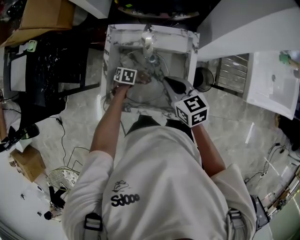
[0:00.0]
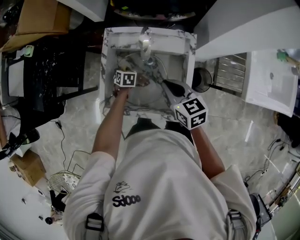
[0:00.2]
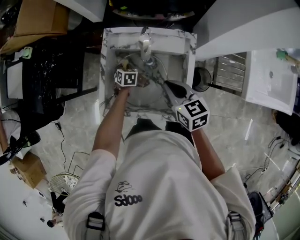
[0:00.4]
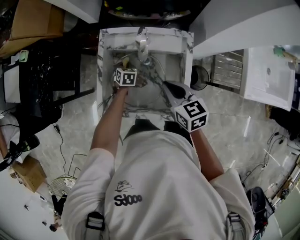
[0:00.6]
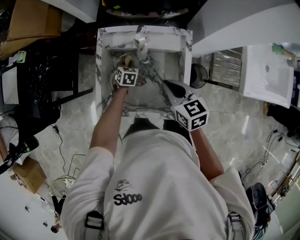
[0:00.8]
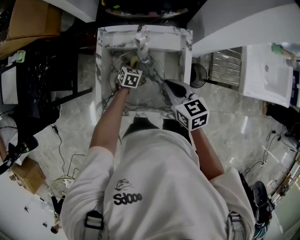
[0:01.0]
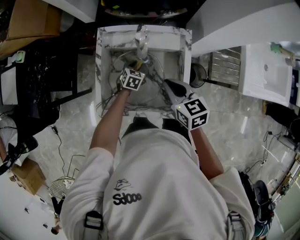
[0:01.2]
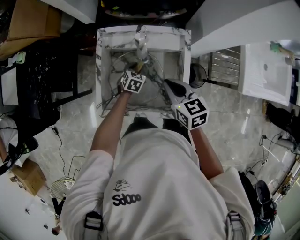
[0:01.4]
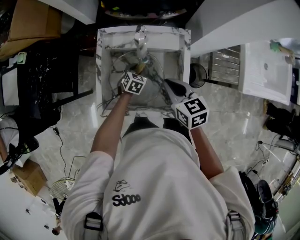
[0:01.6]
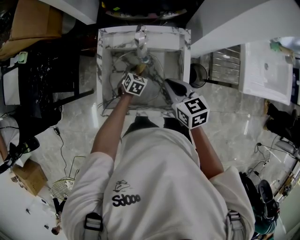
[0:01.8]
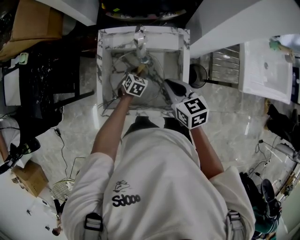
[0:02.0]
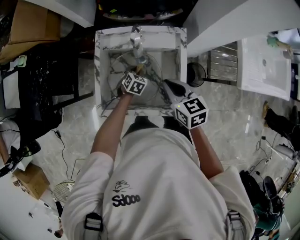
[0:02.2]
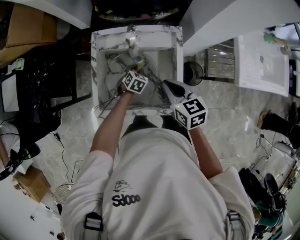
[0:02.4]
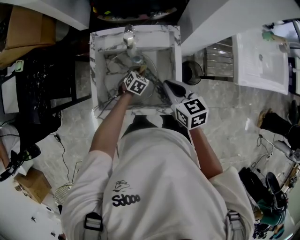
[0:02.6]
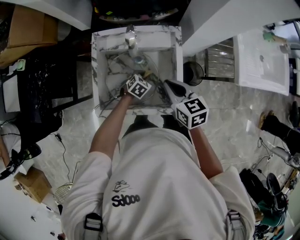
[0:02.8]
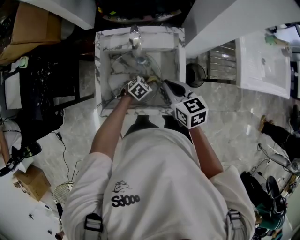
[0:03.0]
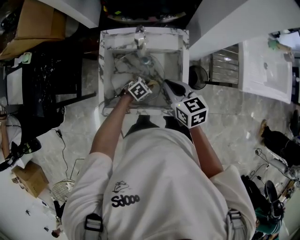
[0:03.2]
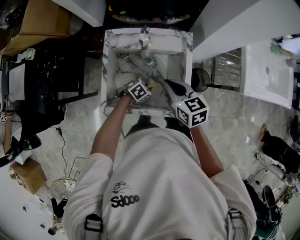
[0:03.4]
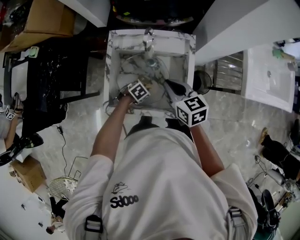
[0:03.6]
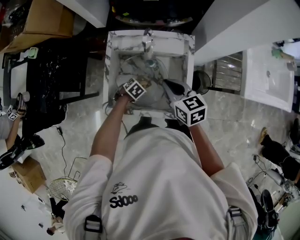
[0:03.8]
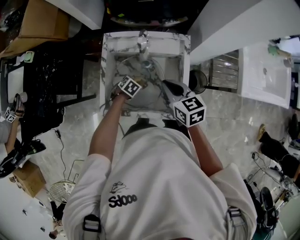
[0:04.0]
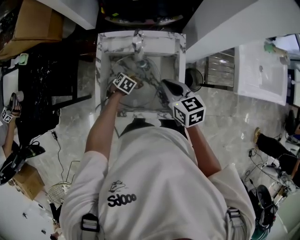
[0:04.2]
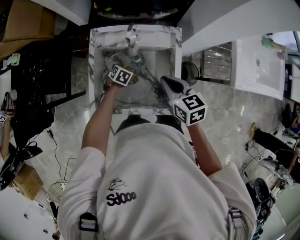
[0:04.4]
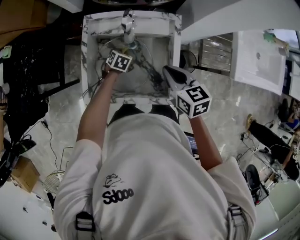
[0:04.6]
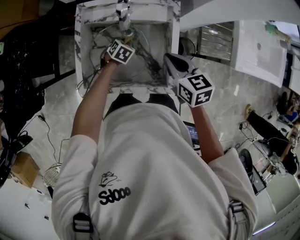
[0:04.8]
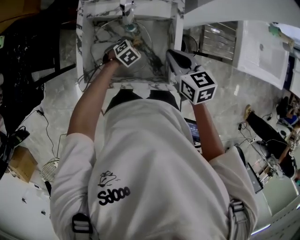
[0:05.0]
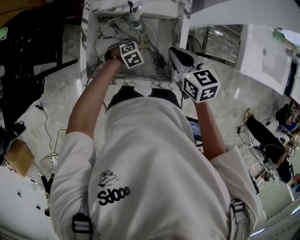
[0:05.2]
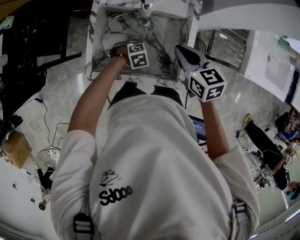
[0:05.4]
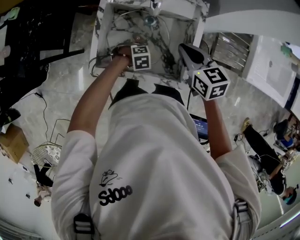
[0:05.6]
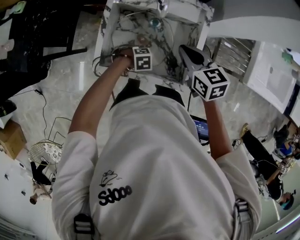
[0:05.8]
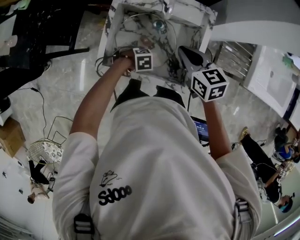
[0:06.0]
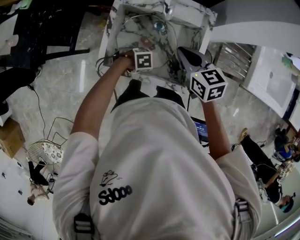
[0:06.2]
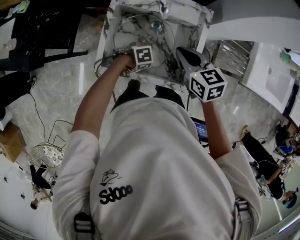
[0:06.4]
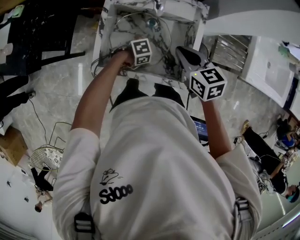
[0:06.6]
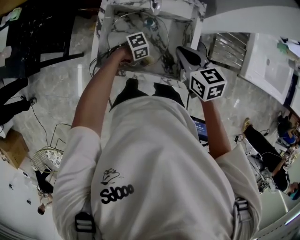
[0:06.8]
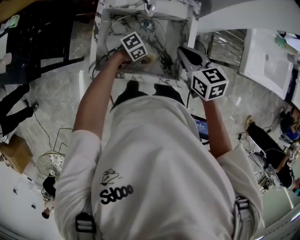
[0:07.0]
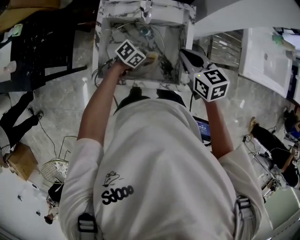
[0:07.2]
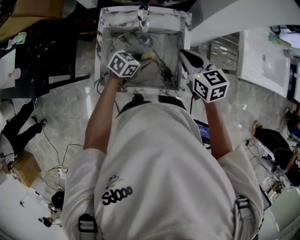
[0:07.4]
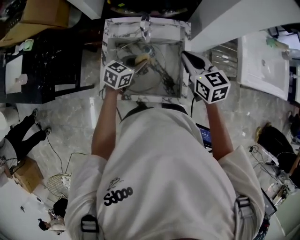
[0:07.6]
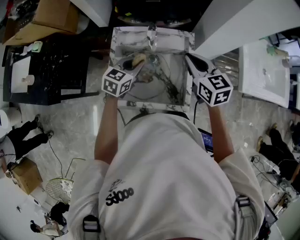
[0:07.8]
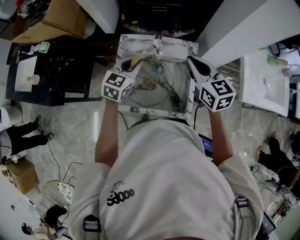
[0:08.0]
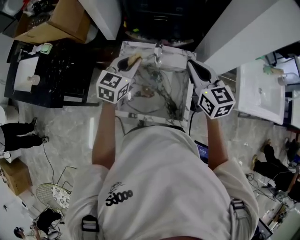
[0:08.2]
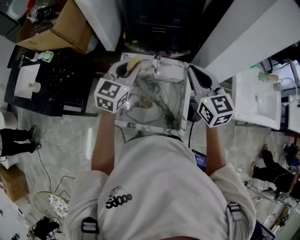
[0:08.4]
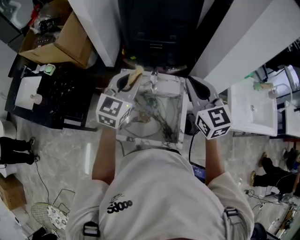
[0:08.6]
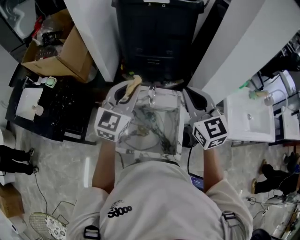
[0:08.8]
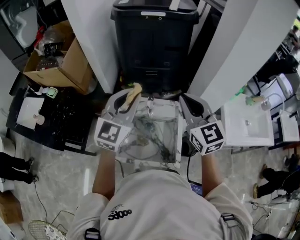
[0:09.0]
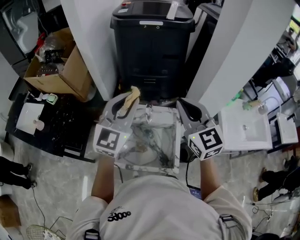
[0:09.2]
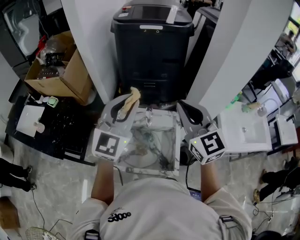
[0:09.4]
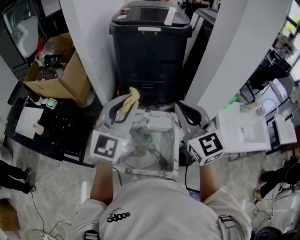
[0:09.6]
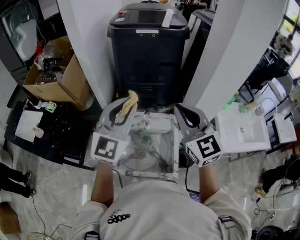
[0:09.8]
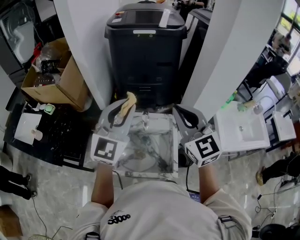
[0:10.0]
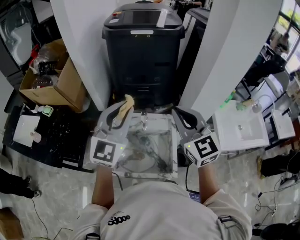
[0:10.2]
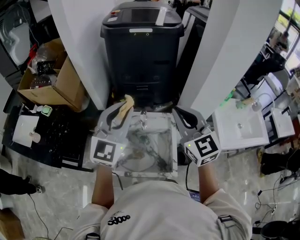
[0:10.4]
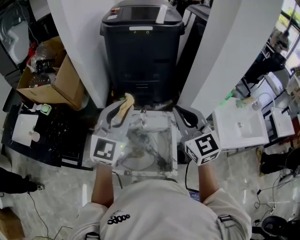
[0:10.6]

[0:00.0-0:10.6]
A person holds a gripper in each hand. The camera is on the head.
0:00.0 to 0:01.6: The left gripper shifts by roughly 10 cm, rotates approximately 30 degrees, and opens.
0:01.6 to 0:03.0: The left gripper shifts some 10 cm backward and to the right, rotates approximately 30 degrees, and closes.
0:03.0 to 0:04.6: The left gripper ends up some 15 cm from where it was, and swivels roughly 30 degrees.
0:04.6 to 0:06.0: The right gripper changes place by about 5 cm. Meanwhile the left gripper shifts by roughly 20 cm, and swivels approximately 50 degrees.
0:06.0 to 0:07.6: The right gripper heads upward, covering about 5 cm, while the left gripper goes about 20 cm upward, and tilts its fingers about 40 degrees upward.
0:07.6 to 0:09.0: The grippers both shift upward by some 30 cm. The left gripper angles its fingers upward, by roughly 30 degrees, while the right gripper rotates some 30 degrees.

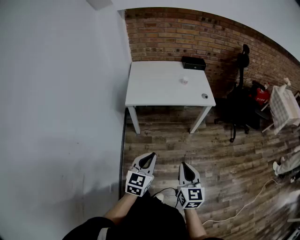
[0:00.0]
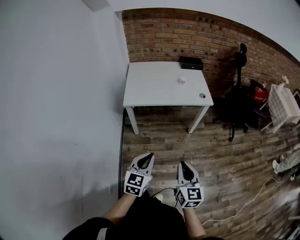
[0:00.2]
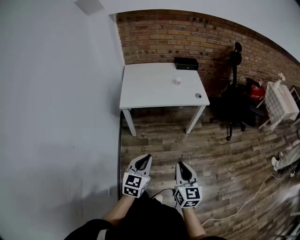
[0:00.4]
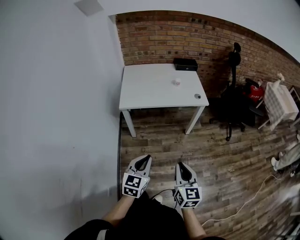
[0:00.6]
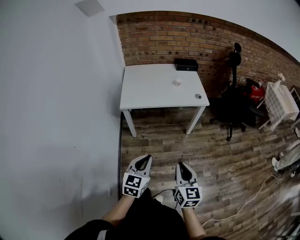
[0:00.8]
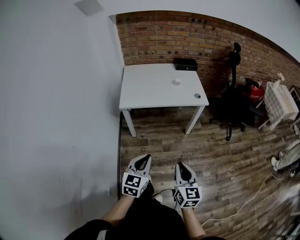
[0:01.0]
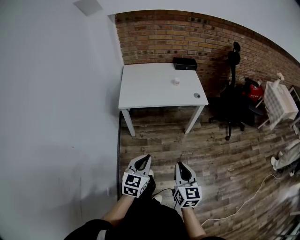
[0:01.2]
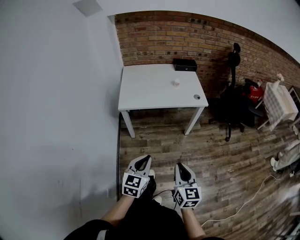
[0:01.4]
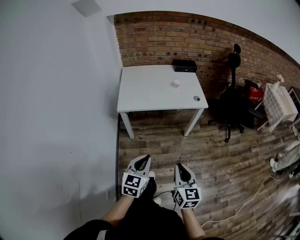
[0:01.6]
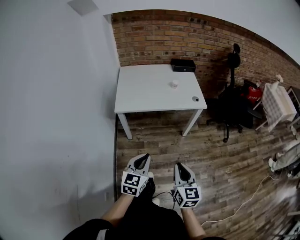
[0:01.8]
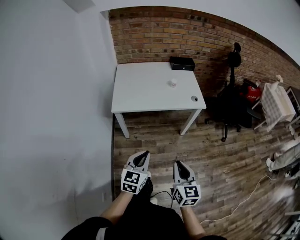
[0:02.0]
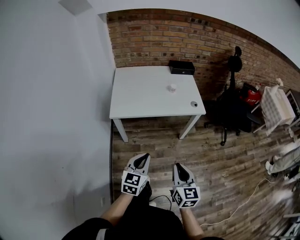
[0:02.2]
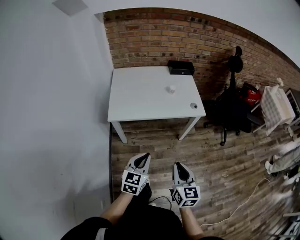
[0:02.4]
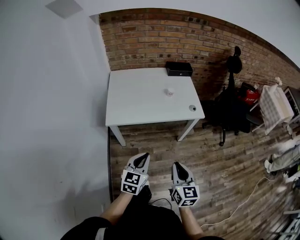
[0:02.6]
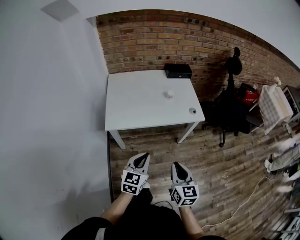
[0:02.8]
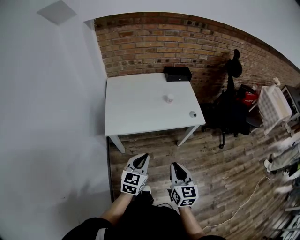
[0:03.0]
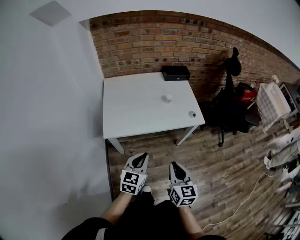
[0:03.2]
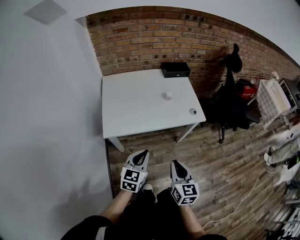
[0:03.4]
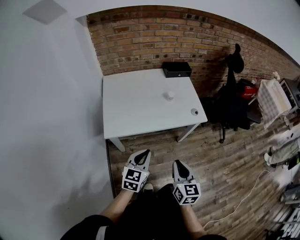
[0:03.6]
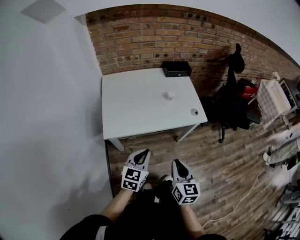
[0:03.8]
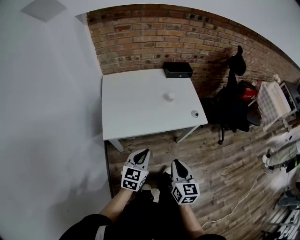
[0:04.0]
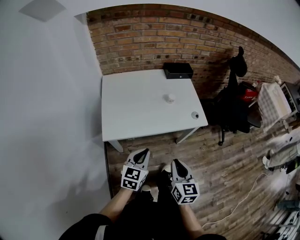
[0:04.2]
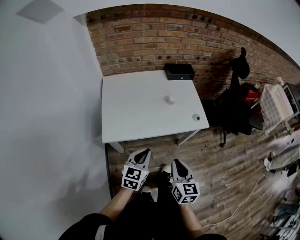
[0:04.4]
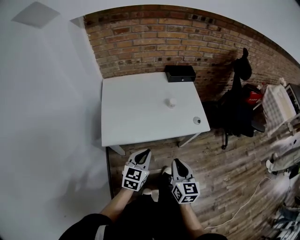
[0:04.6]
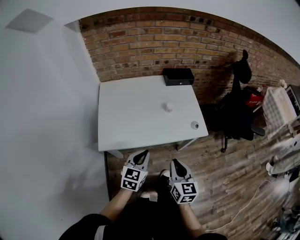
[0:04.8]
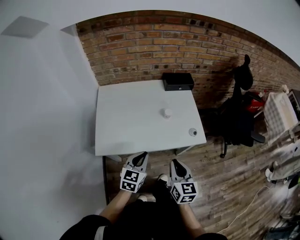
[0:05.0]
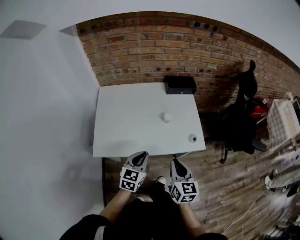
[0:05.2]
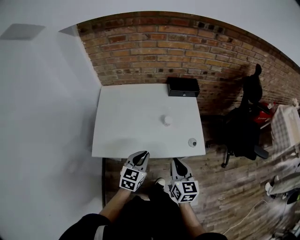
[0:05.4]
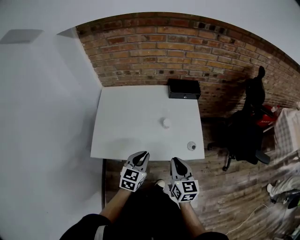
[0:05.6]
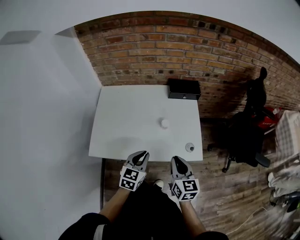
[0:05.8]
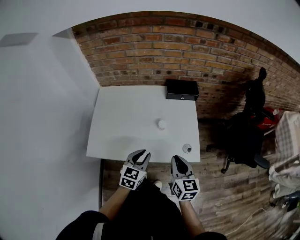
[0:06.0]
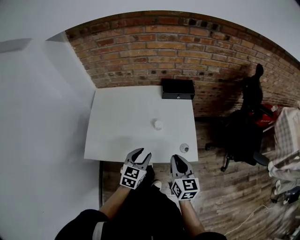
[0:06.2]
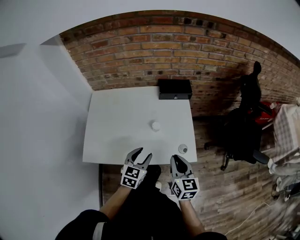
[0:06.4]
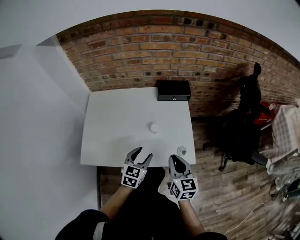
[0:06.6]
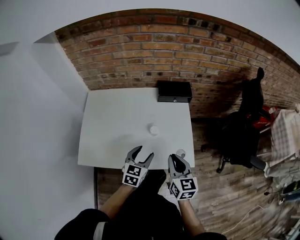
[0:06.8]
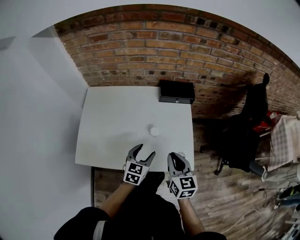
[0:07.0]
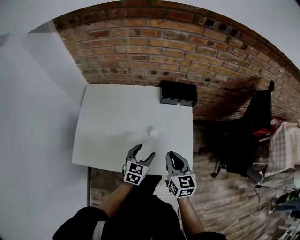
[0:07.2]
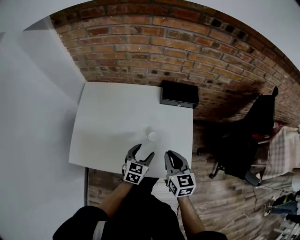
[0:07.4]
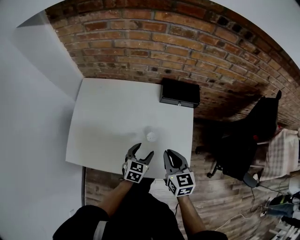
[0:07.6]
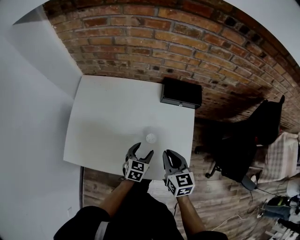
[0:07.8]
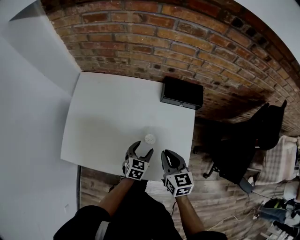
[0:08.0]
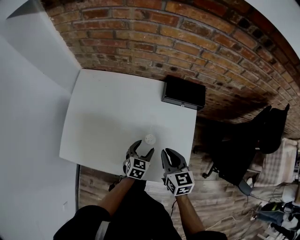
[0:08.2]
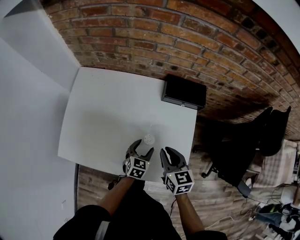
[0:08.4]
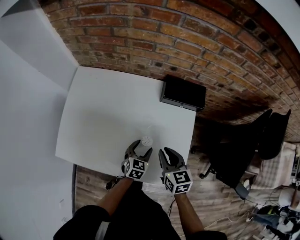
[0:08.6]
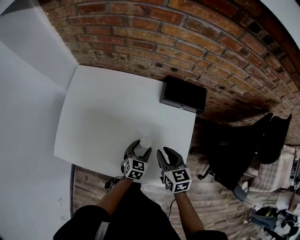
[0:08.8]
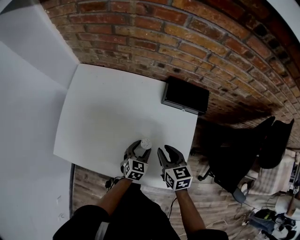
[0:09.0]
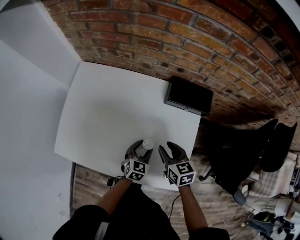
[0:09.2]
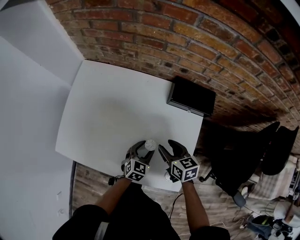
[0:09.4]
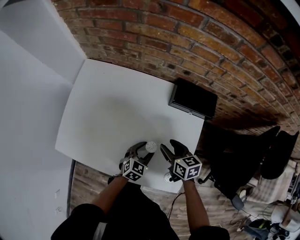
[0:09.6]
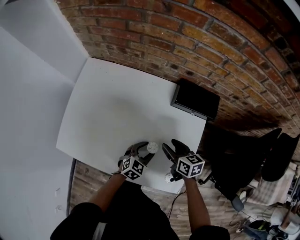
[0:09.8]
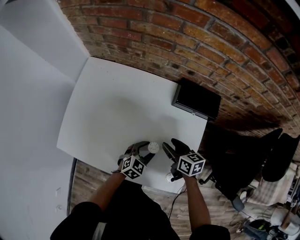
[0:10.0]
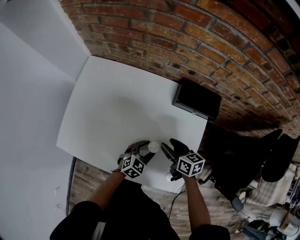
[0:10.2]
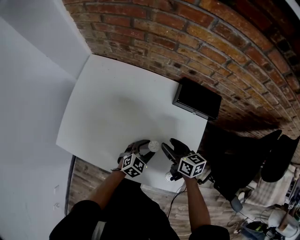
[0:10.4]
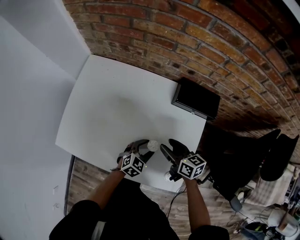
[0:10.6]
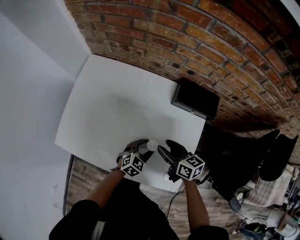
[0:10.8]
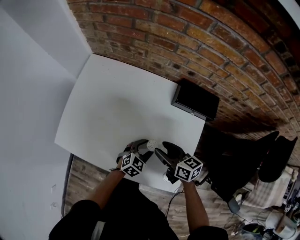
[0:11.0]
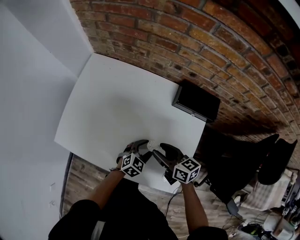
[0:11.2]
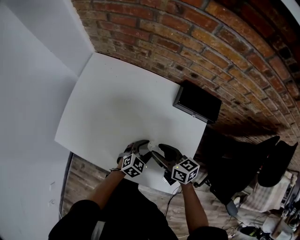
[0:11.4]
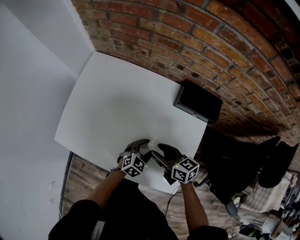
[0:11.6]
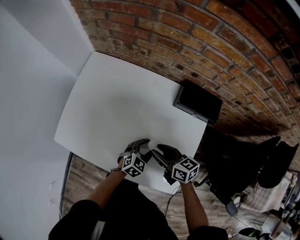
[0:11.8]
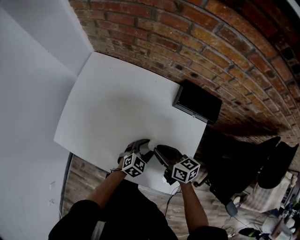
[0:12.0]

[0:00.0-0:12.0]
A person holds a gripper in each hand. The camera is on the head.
0:00.0 to 0:01.6: The grippers make only small movements.
0:01.6 to 0:03.0: Both grippers travel together forward, approximately 25 cm.
0:03.0 to 0:04.4: Both grippers travel together forward, roughly 10 cm.
0:04.4 to 0:06.0: Both grippers move forward and to the right, about 25 cm.
0:06.0 to 0:07.6: The left gripper moves forward and downward, approximately 20 cm, and opens up. The right gripper heads forward, covering approximately 15 cm.
0:07.6 to 0:09.0: Both grippers move downward and forward, roughly 10 cm.
0:09.0 to 0:10.4: The right gripper changes place by about 5 cm, changes its angle by some 20 degrees, and opens up.
0:10.4 to 0:12.0: The right gripper closes.

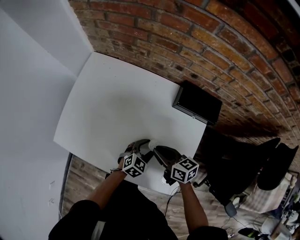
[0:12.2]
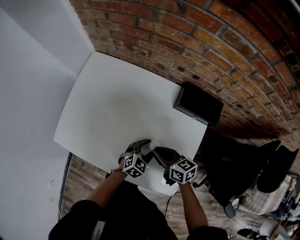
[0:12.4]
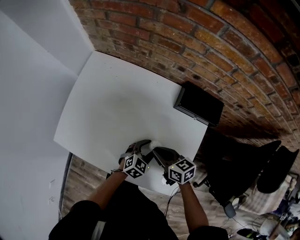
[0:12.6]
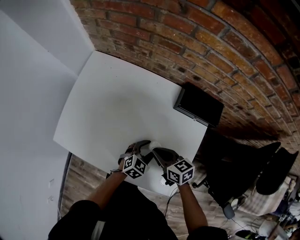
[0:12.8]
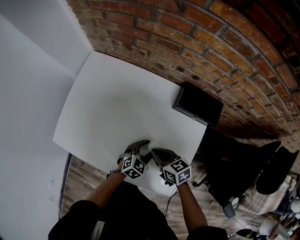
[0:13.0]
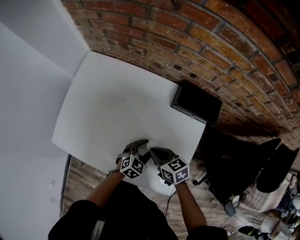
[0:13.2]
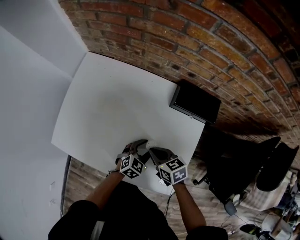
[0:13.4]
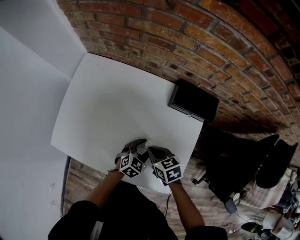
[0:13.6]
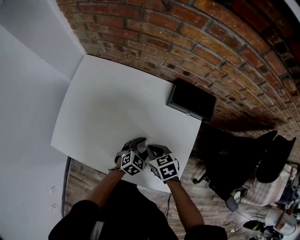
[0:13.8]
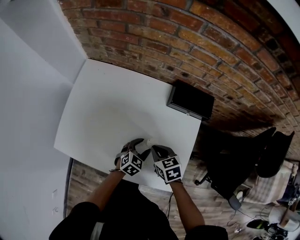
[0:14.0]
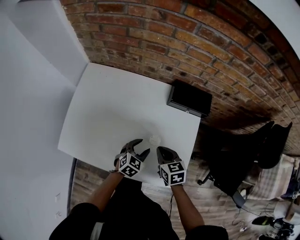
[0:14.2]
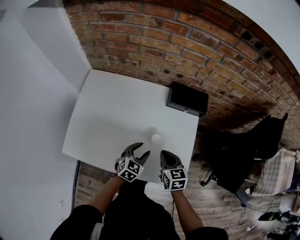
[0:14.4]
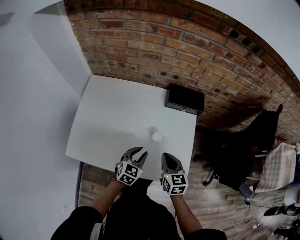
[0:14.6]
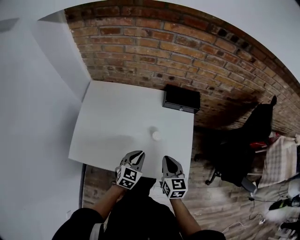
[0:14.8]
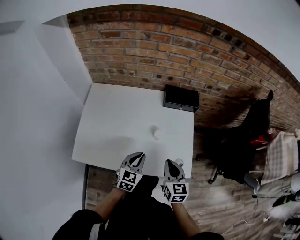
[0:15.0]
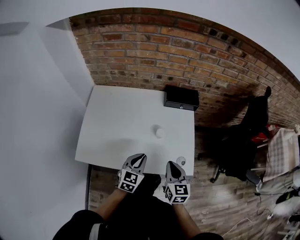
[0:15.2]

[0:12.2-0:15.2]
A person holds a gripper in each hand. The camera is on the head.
0:12.2 to 0:13.8: The right gripper turns by some 30 degrees.
0:13.8 to 0:15.2: The right gripper shifts some 20 cm backward and upward, and tilts its fingers some 30 degrees upward. Meanwhile the left gripper is displaced upward, backward and to the left by roughly 25 cm, rotates some 20 degrees, and closes its fingers.
